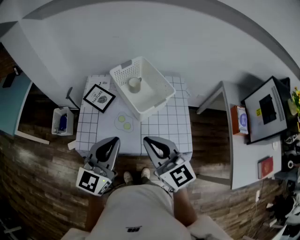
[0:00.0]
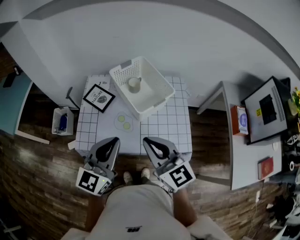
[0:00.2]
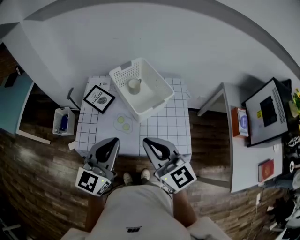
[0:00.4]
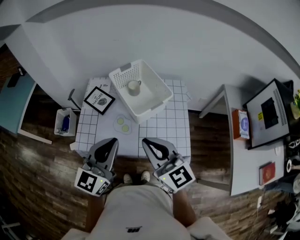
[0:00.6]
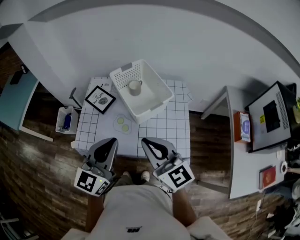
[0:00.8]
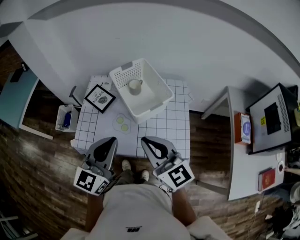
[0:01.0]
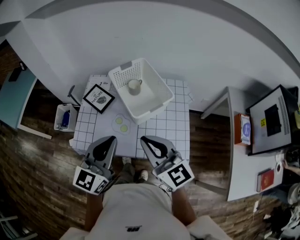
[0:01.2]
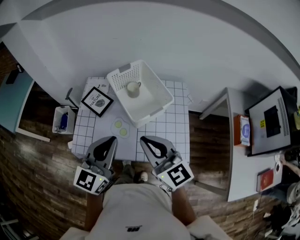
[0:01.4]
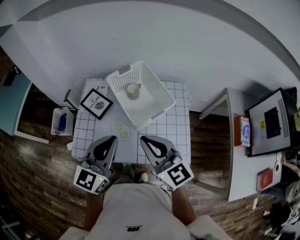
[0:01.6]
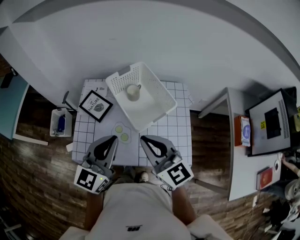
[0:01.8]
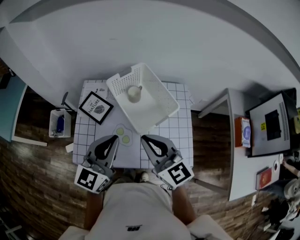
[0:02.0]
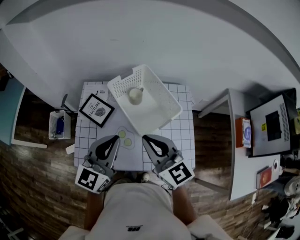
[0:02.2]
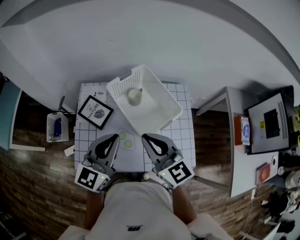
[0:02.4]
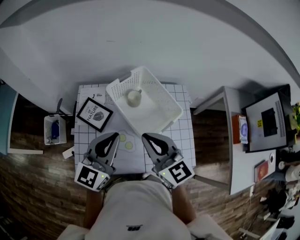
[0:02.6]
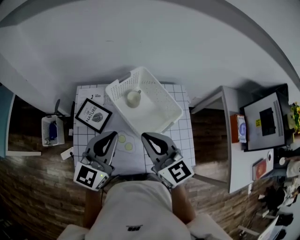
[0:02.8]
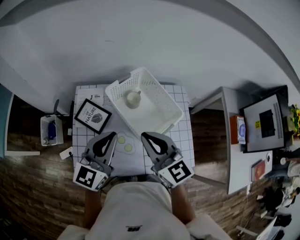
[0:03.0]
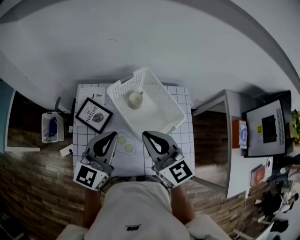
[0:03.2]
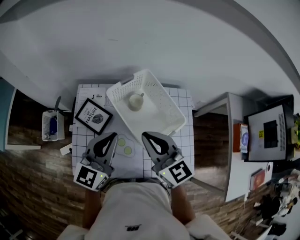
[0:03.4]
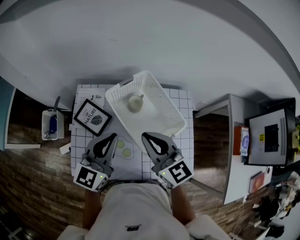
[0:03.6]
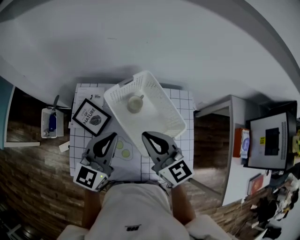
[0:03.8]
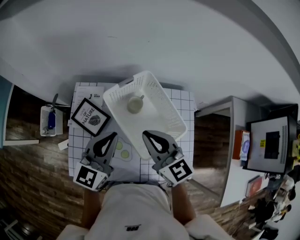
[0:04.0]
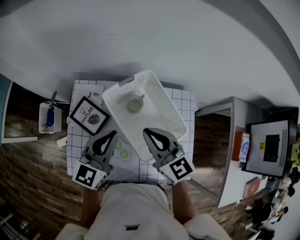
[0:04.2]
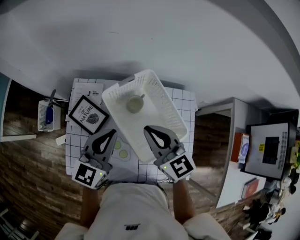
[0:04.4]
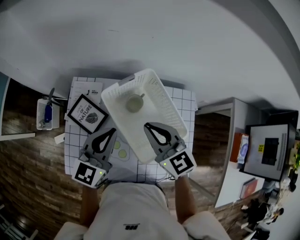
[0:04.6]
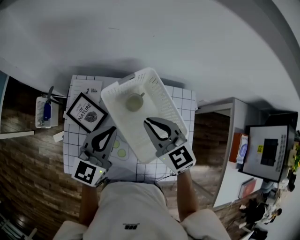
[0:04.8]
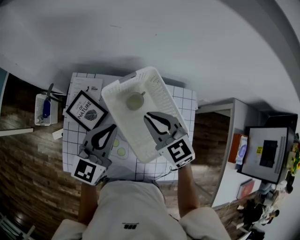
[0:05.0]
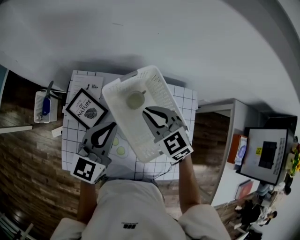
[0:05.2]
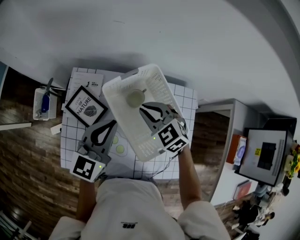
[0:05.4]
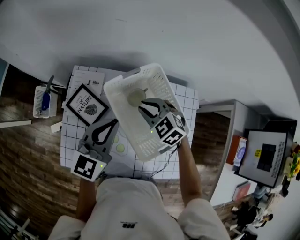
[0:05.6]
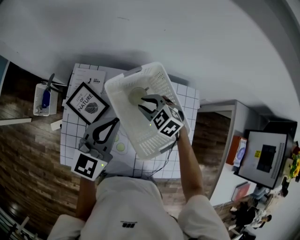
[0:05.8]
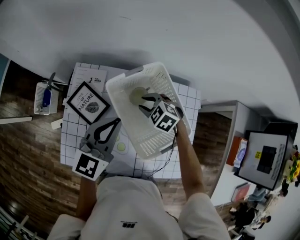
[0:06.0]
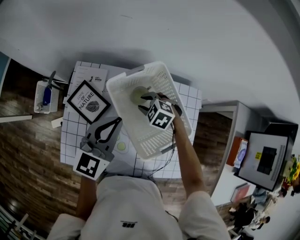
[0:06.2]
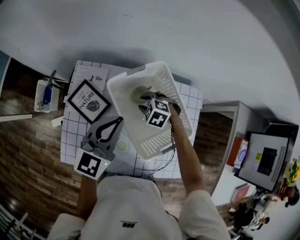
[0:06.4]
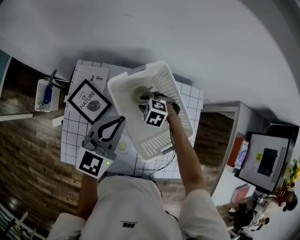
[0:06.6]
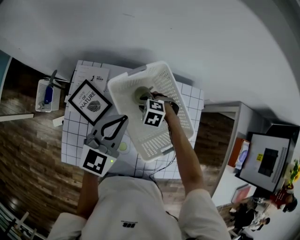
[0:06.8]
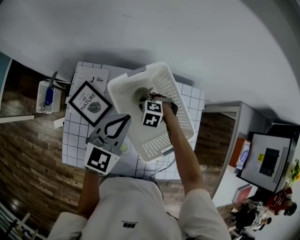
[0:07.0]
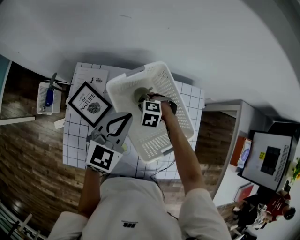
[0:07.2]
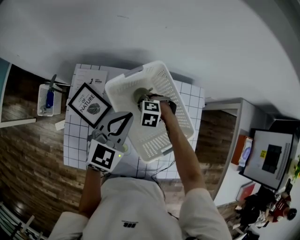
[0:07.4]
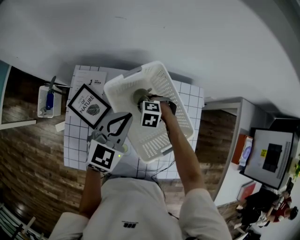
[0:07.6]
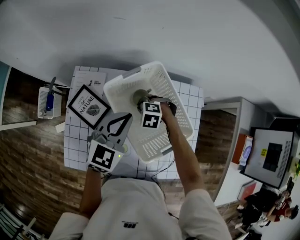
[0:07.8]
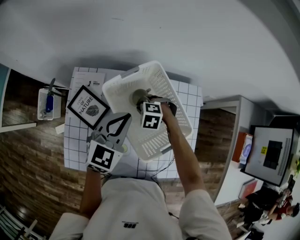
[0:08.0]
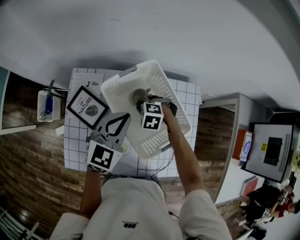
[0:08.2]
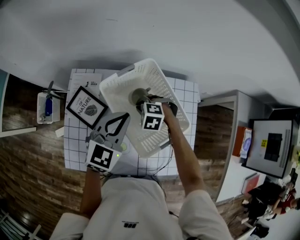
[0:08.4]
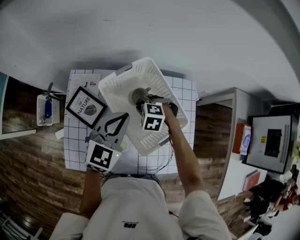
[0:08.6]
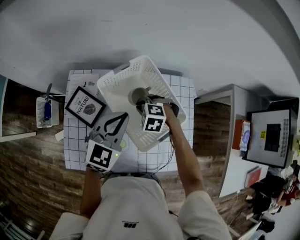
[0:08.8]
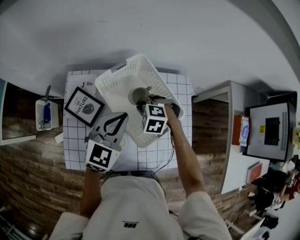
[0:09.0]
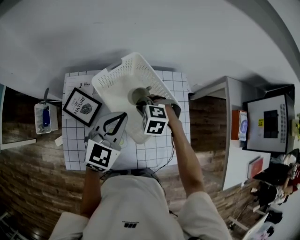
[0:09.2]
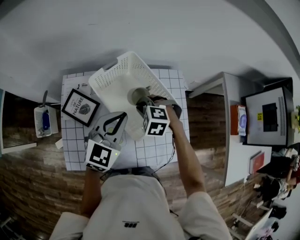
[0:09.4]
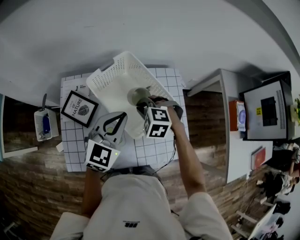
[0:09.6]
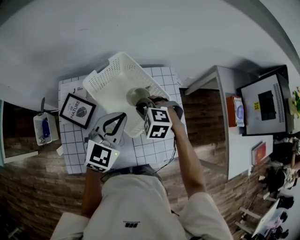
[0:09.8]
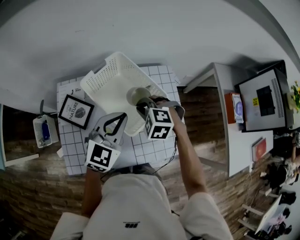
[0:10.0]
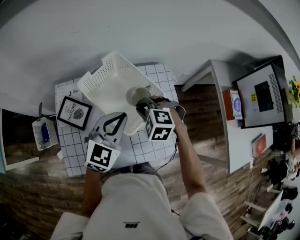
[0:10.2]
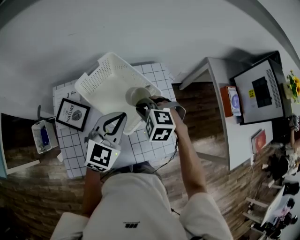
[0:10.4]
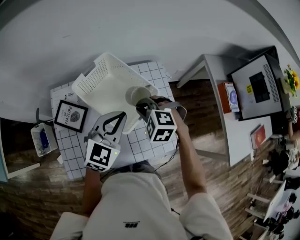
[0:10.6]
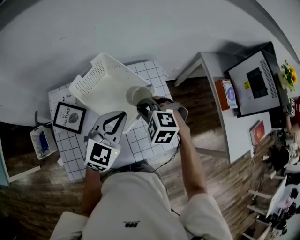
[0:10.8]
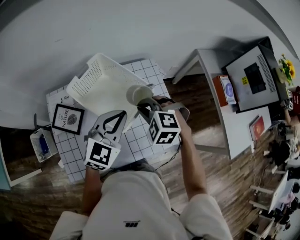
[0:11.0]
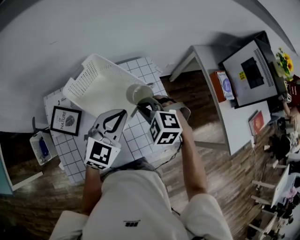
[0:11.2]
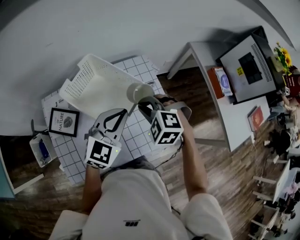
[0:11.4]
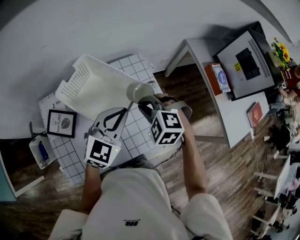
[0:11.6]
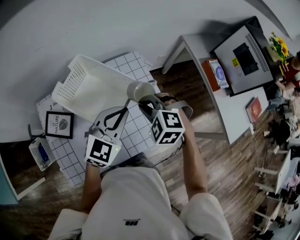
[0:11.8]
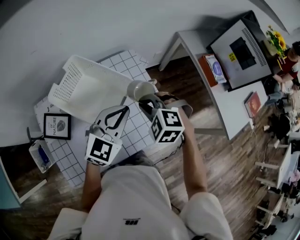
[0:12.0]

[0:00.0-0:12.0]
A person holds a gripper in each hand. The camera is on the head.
0:00.0 to 0:01.6: The grippers both shift forward by about 10 cm.
0:01.6 to 0:03.0: The two grippers go approximately 15 cm forward and to the left.
0:03.0 to 0:04.4: The two grippers go about 10 cm forward and downward.
0:04.4 to 0:06.0: The right gripper shifts roughly 20 cm downward and forward, tips its fingers downward by some 40 degrees, and opens its fingers.
0:06.0 to 0:07.6: The left gripper changes place by about 5 cm, while the right gripper goes approximately 10 cm downward, and turns by roughly 20 degrees.
0:07.6 to 0:09.0: The left gripper shifts by roughly 5 cm. The right gripper heads upward, covering about 10 cm.
0:09.0 to 0:10.4: The left gripper is displaced to the right and backward by roughly 10 cm, while the right gripper is displaced upward, to the right and backward by some 15 cm.
0:10.4 to 0:12.0: Both grippers move to the right, roughly 10 cm.

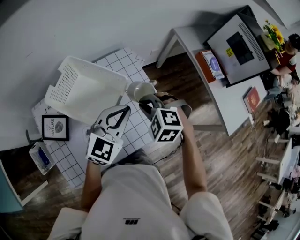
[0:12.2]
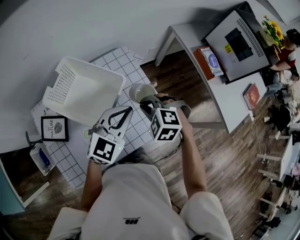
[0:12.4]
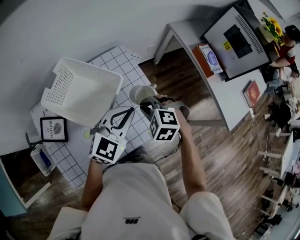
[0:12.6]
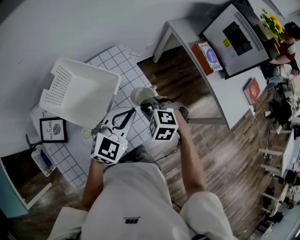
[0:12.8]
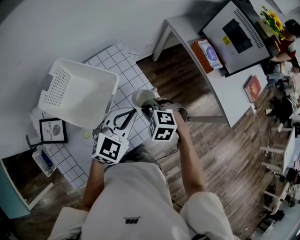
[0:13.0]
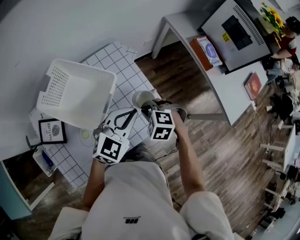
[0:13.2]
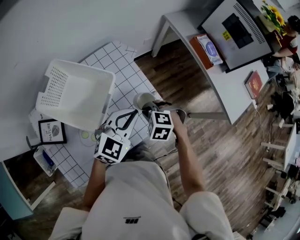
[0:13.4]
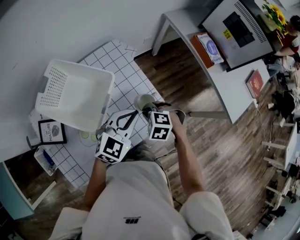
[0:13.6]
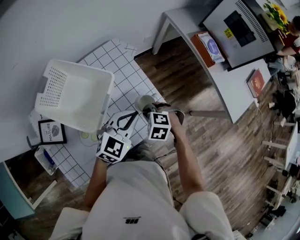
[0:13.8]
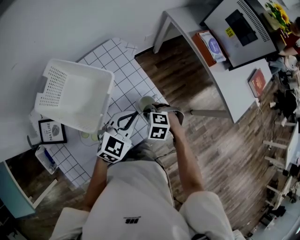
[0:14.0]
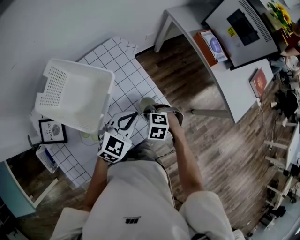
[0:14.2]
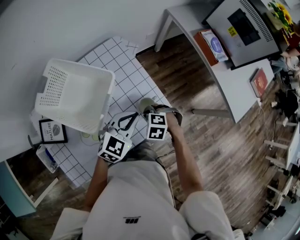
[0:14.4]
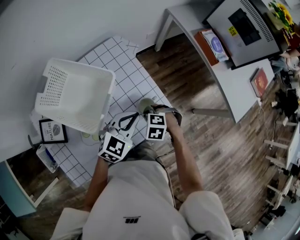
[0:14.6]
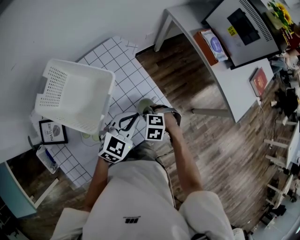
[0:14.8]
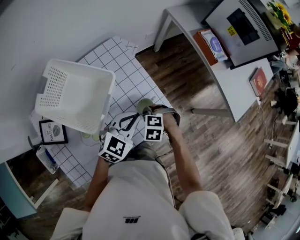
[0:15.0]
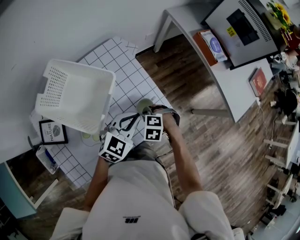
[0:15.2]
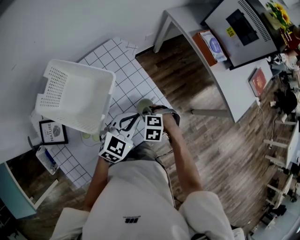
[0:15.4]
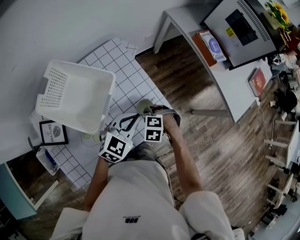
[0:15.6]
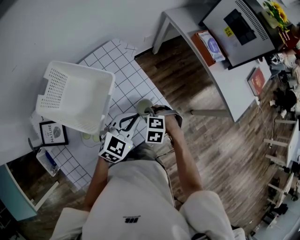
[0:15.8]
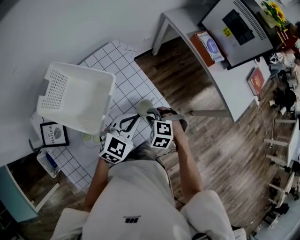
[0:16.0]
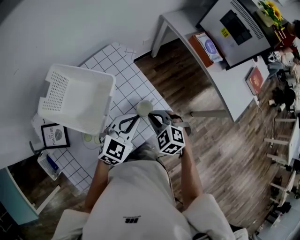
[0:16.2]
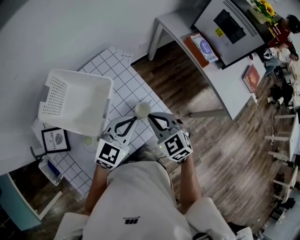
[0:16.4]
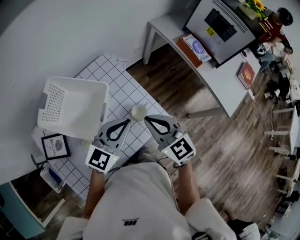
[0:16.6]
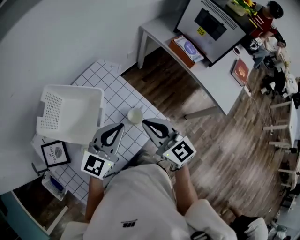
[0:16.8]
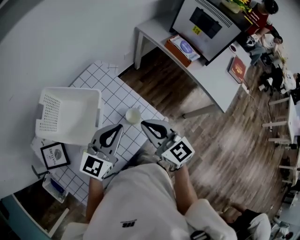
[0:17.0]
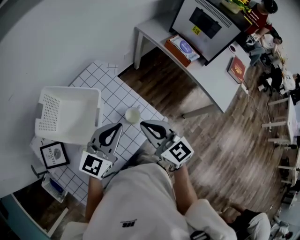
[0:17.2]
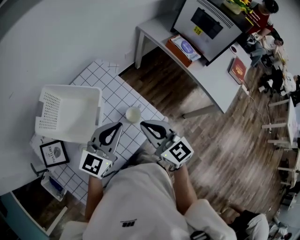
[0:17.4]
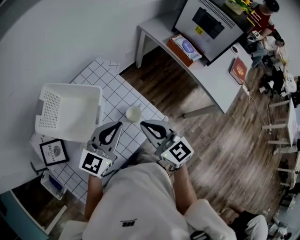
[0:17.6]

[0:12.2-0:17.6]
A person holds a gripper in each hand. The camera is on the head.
0:12.2 to 0:13.6: The two grippers go some 15 cm downward and to the right.
0:13.6 to 0:15.0: The right gripper is displaced downward by about 5 cm.
0:15.0 to 0:16.2: The right gripper is displaced upward by approximately 10 cm, and rotates some 30 degrees.
0:16.2 to 0:17.6: The right gripper is displaced upward by about 15 cm, and points its fingers approximately 40 degrees further upward. The left gripper heads upward, covering about 10 cm, and changes its angle by approximately 20 degrees.

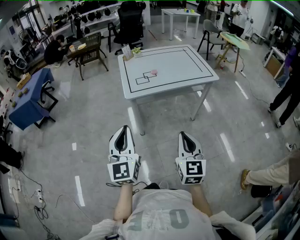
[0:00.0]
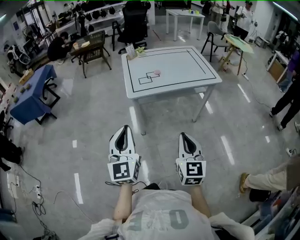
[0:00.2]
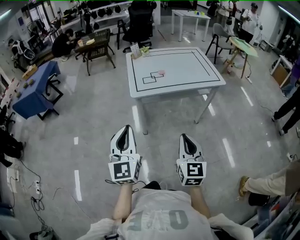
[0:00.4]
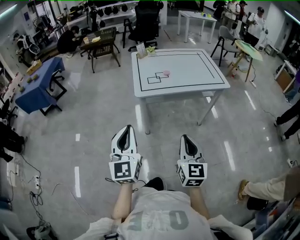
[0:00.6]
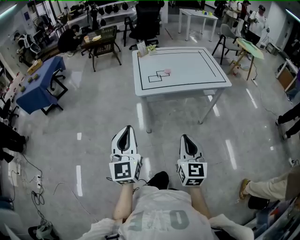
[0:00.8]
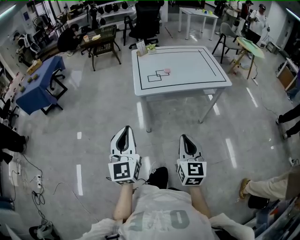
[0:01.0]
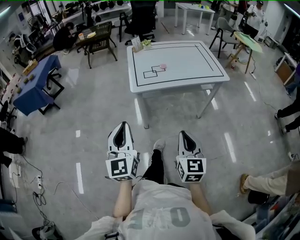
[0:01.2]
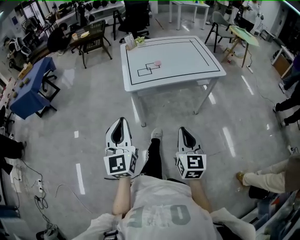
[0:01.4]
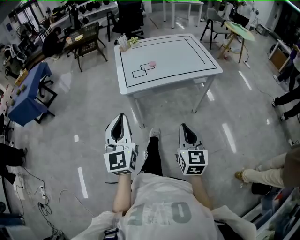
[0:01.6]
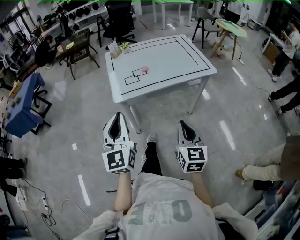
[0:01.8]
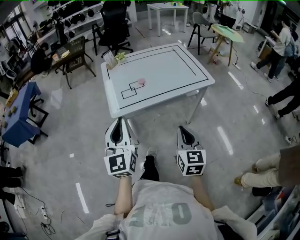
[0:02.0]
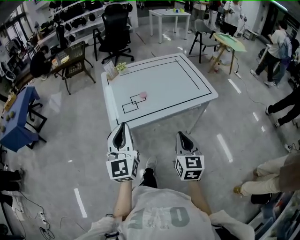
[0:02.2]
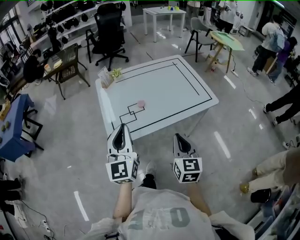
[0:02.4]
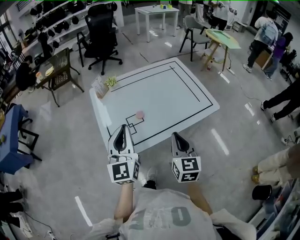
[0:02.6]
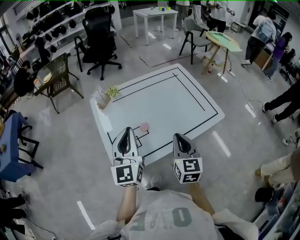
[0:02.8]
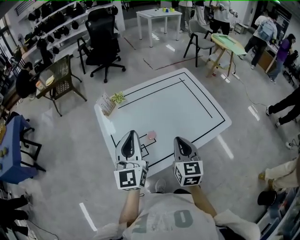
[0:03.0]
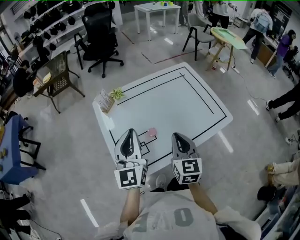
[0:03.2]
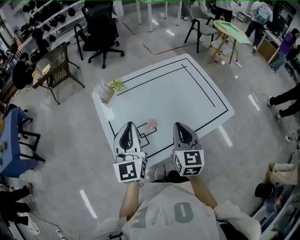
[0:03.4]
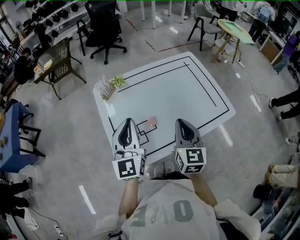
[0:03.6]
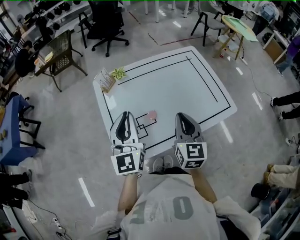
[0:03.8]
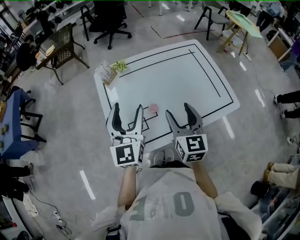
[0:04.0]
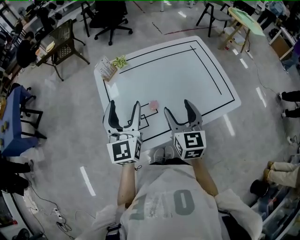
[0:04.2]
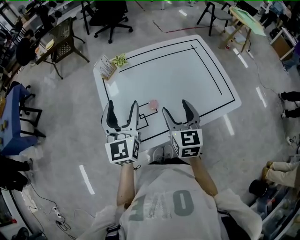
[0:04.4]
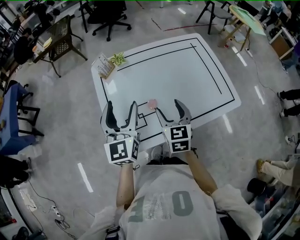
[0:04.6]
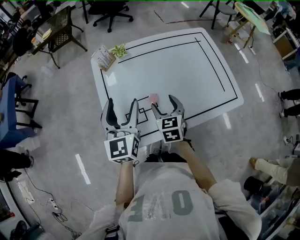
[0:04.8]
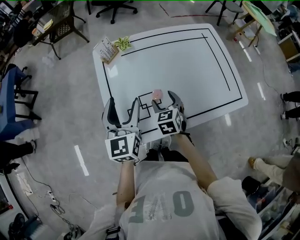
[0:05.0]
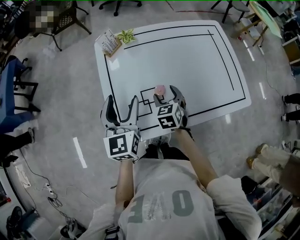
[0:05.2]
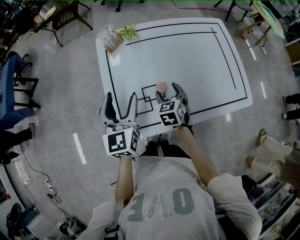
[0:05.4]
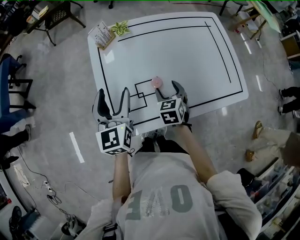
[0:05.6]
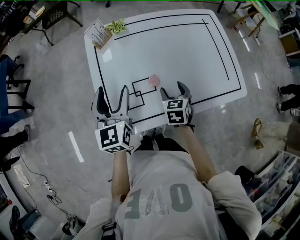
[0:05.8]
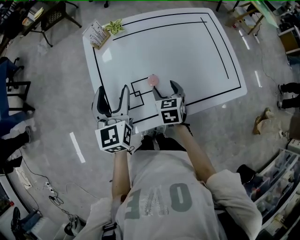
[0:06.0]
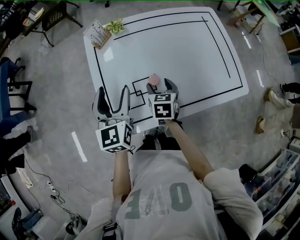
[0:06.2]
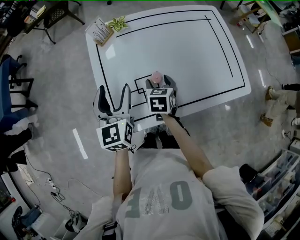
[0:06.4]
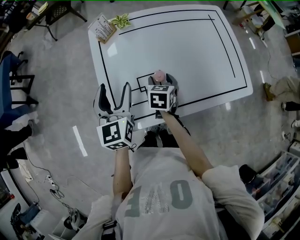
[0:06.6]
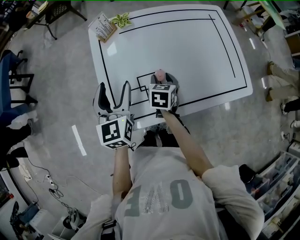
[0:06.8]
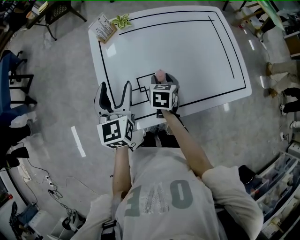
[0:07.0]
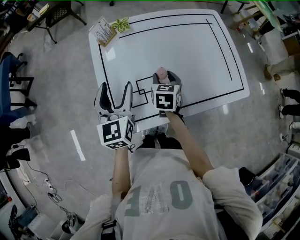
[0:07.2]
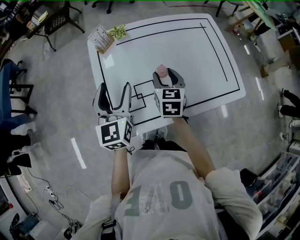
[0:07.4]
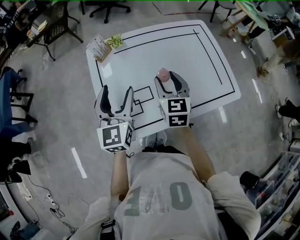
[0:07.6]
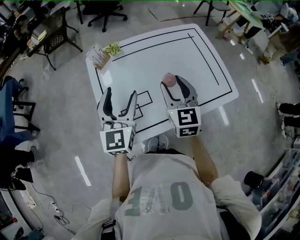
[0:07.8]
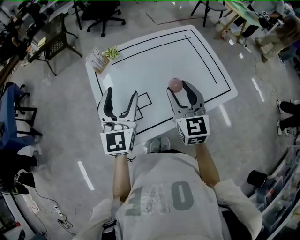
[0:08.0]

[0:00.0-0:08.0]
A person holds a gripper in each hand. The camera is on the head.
0:00.0 to 0:01.6: Both grippers move forward, about 5 cm.
0:01.6 to 0:03.2: Both grippers are carried forward, some 40 cm.
0:03.2 to 0:04.8: The left gripper travels downward by about 5 cm, and opens up. The right gripper goes some 15 cm downward, forward and to the left, rotates about 20 degrees, and opens its fingers.
0:04.8 to 0:06.4: Both grippers travel together downward, approximately 5 cm.
0:06.4 to 0:08.0: The left gripper heads upward and to the right, covering roughly 10 cm, and turns by roughly 20 degrees. Meanwhile the right gripper moves upward and to the right, roughly 25 cm, and angles its fingers upward, by some 40 degrees.
